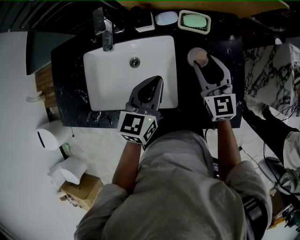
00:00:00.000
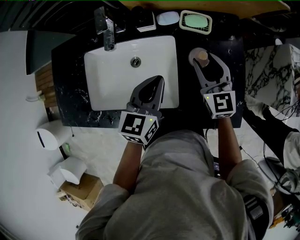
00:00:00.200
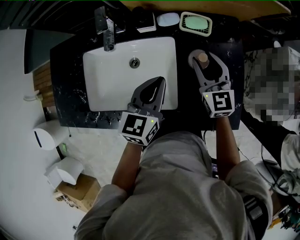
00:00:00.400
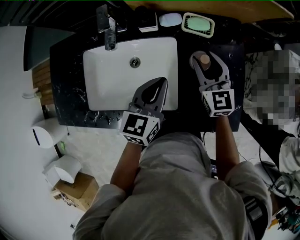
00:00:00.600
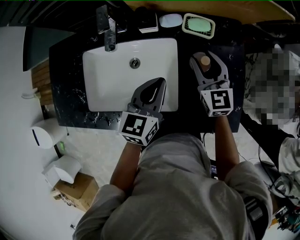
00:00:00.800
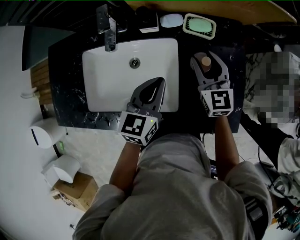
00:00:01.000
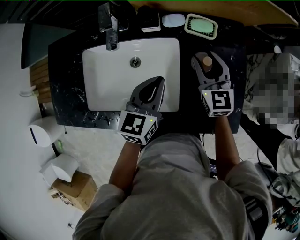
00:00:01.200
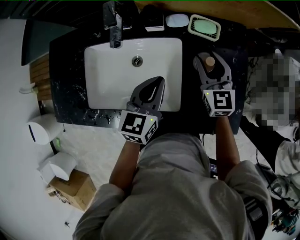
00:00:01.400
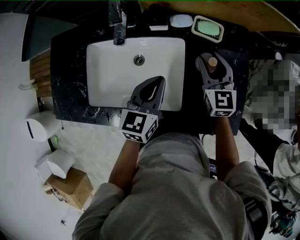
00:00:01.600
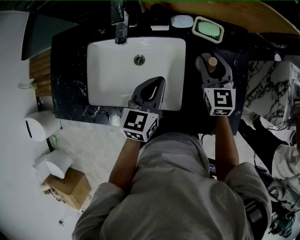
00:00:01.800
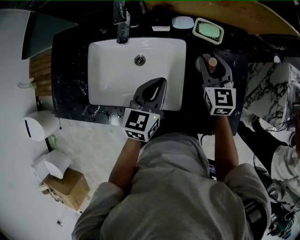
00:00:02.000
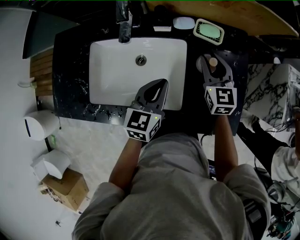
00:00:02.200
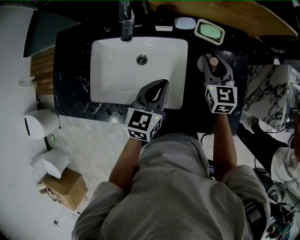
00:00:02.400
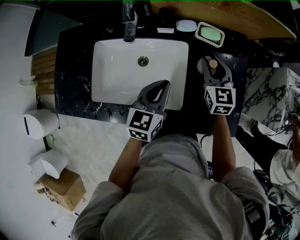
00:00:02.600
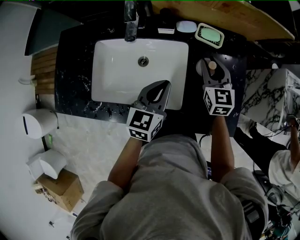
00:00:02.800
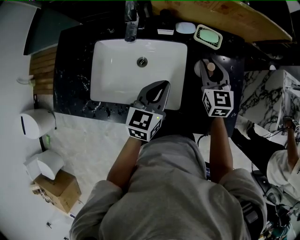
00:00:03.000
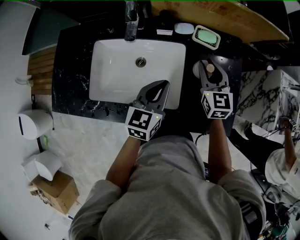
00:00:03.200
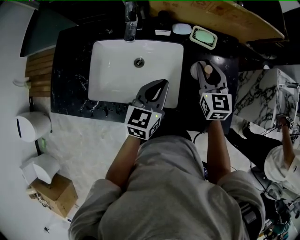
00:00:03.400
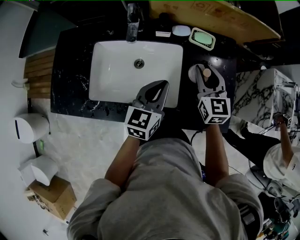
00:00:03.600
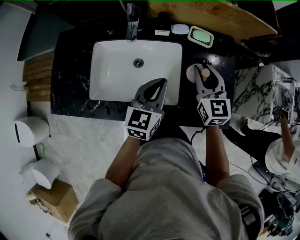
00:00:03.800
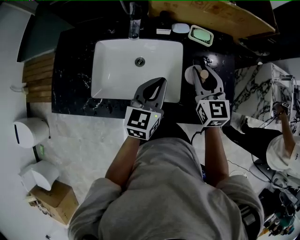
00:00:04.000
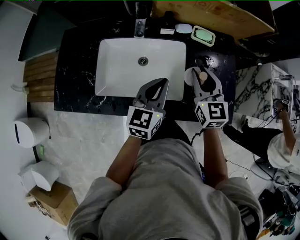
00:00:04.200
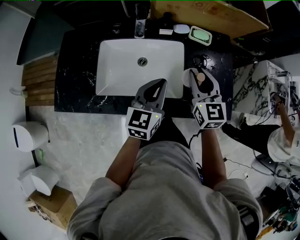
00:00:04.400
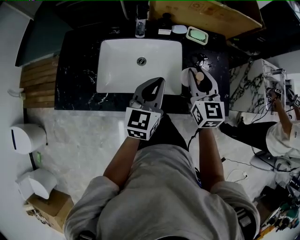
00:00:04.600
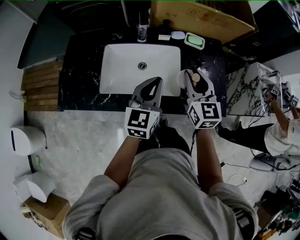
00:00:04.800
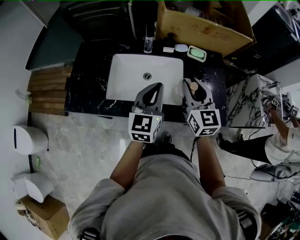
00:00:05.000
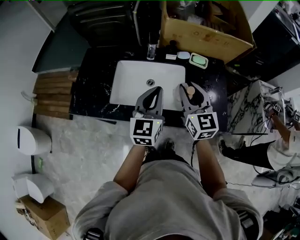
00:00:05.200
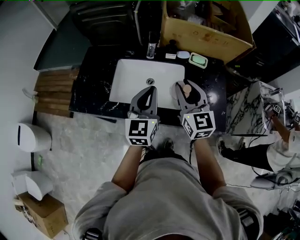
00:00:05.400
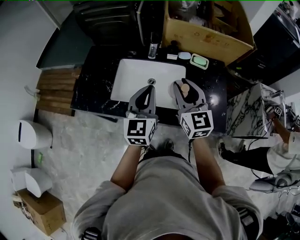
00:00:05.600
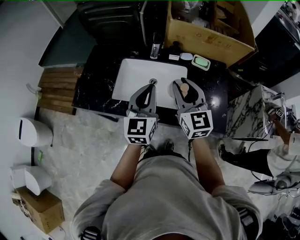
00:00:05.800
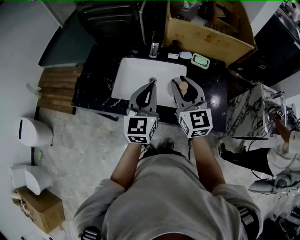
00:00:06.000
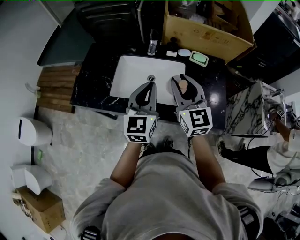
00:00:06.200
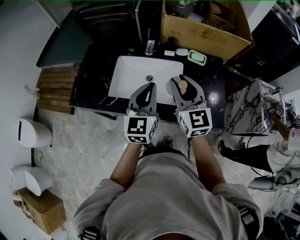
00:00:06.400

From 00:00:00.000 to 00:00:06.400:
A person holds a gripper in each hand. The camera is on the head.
From 00:00:00.000 to 00:00:03.200: The grippers make only small movements.
From 00:00:03.200 to 00:00:04.800: The left gripper shifts roughly 15 cm upward, backward and to the left; the right gripper is displaced backward, upward and to the left by roughly 20 cm.
From 00:00:04.800 to 00:00:06.400: The two grippers go approximately 5 cm upward.

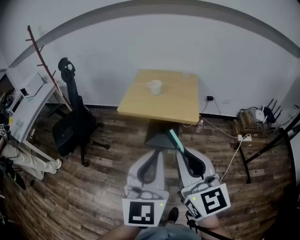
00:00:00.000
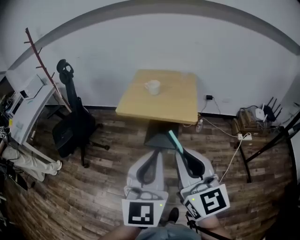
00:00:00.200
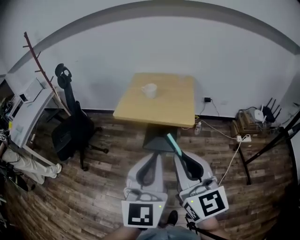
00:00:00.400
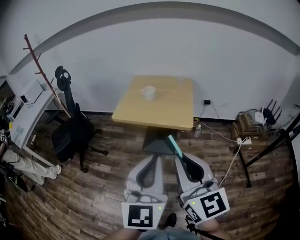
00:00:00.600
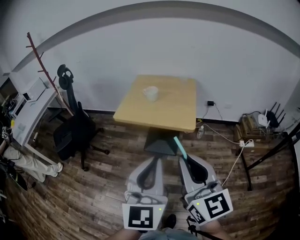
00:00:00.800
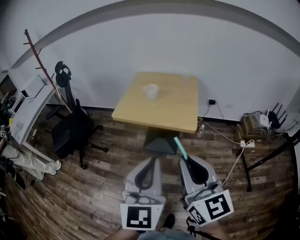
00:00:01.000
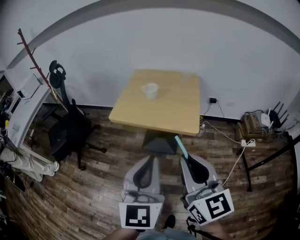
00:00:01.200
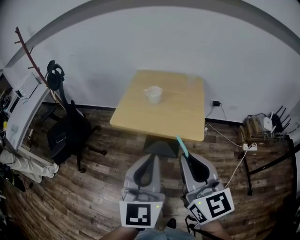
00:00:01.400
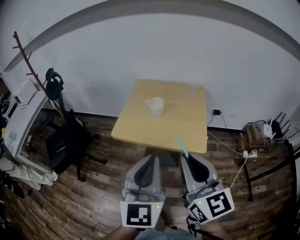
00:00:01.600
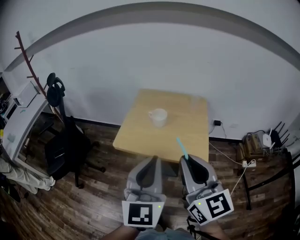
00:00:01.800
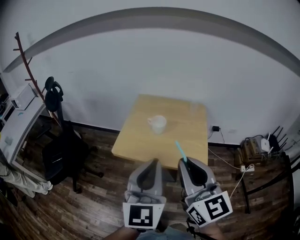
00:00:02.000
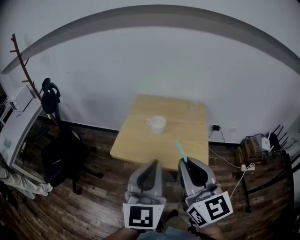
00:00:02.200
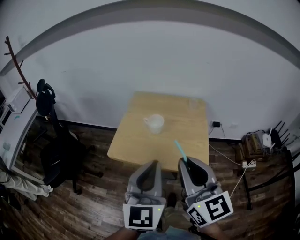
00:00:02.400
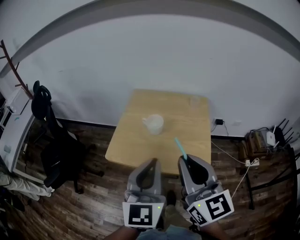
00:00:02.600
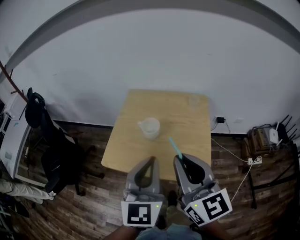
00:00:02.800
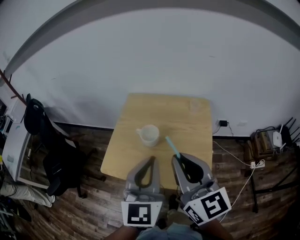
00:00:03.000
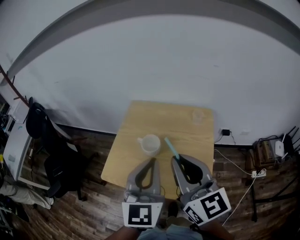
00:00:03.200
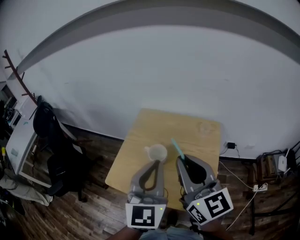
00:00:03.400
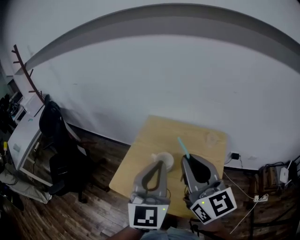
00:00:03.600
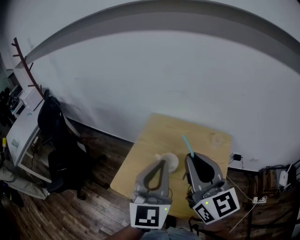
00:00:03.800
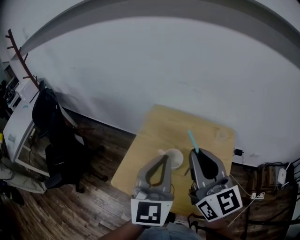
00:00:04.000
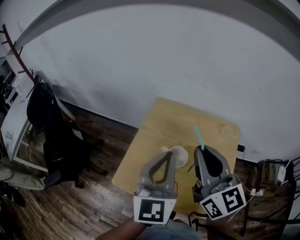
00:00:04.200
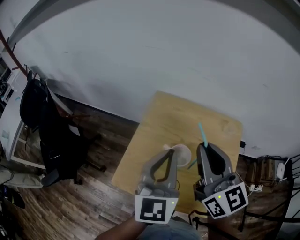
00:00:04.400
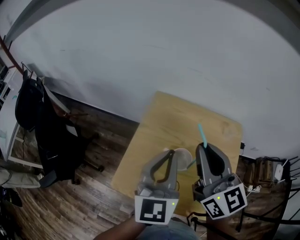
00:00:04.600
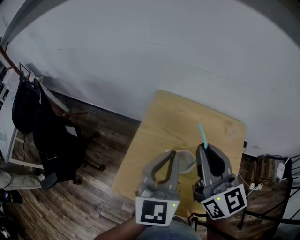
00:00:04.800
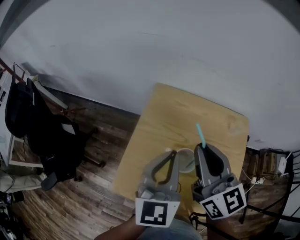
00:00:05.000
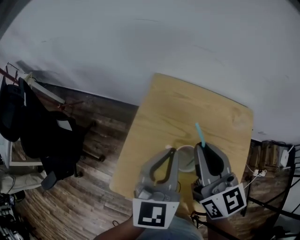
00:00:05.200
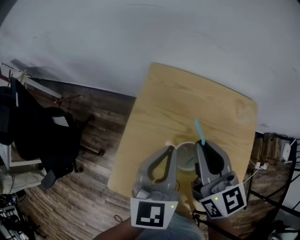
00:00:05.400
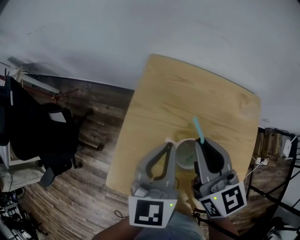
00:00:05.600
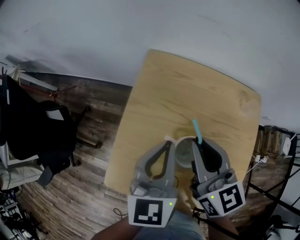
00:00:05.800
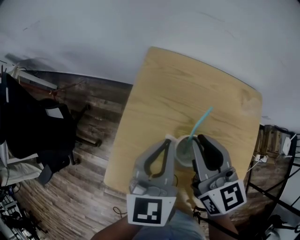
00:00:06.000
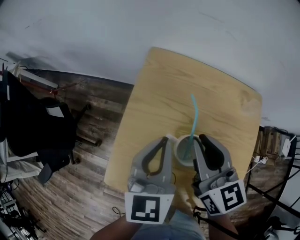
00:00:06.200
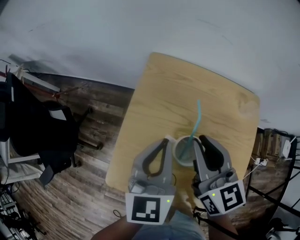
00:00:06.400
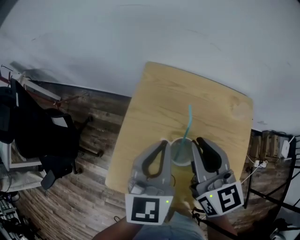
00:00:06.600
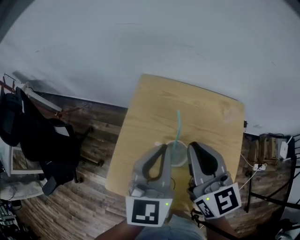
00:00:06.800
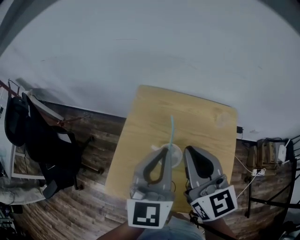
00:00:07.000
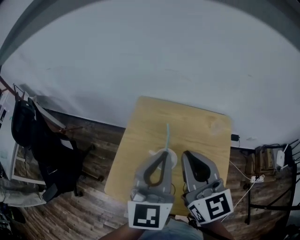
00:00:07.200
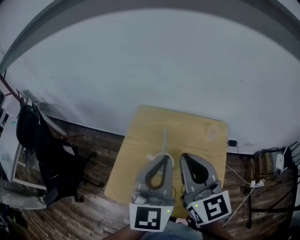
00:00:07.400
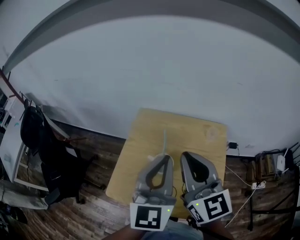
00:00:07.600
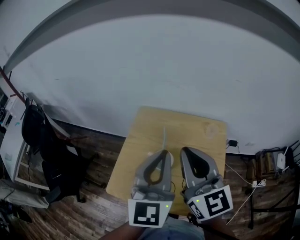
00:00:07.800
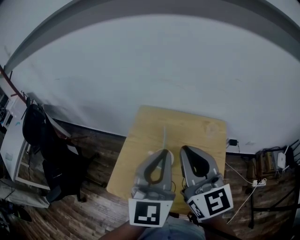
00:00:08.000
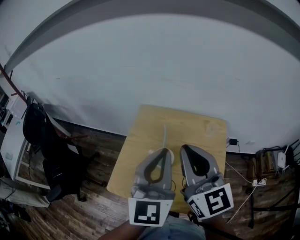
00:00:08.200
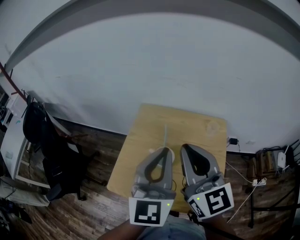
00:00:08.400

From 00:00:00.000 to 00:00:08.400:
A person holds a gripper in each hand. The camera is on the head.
From 00:00:00.000 to 00:00:01.400: The two grippers go about 15 cm forward.
From 00:00:01.400 to 00:00:02.800: The grippers both shift forward by about 25 cm.
From 00:00:02.800 to 00:00:04.200: The grippers both shift forward by some 20 cm.
From 00:00:04.200 to 00:00:05.600: The two grippers go about 20 cm downward and forward.
From 00:00:05.600 to 00:00:07.000: The right gripper goes approximately 10 cm upward and backward, while the left gripper moves upward, approximately 10 cm.
From 00:00:07.000 to 00:00:08.400: The two grippers go approximately 10 cm upward and backward.

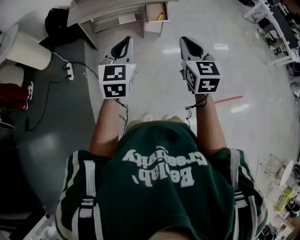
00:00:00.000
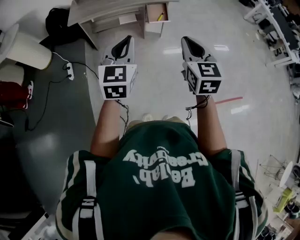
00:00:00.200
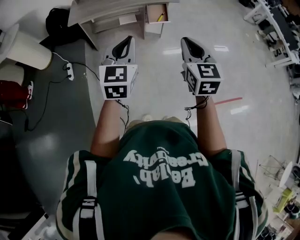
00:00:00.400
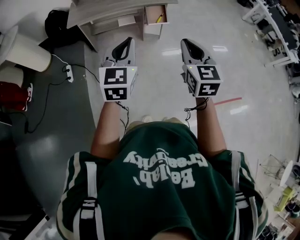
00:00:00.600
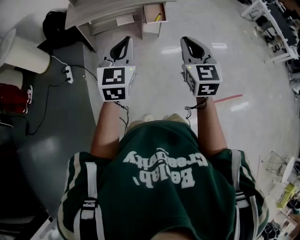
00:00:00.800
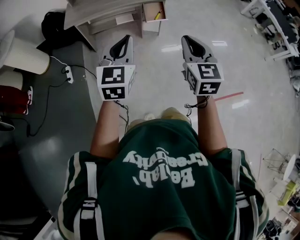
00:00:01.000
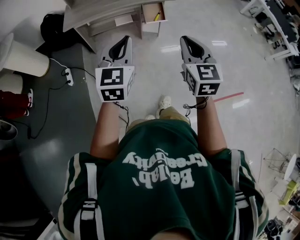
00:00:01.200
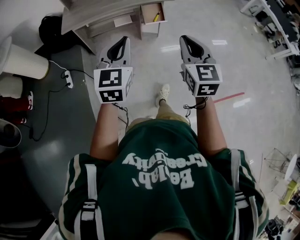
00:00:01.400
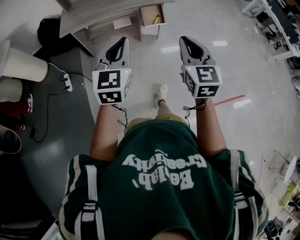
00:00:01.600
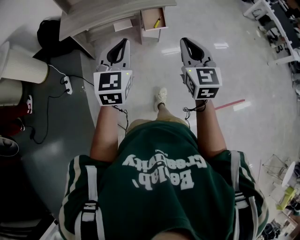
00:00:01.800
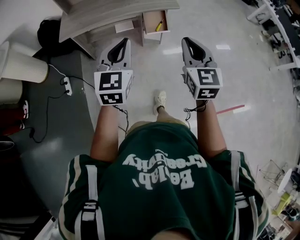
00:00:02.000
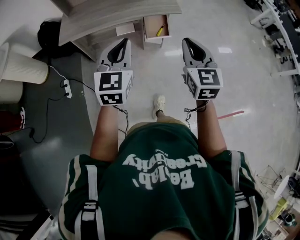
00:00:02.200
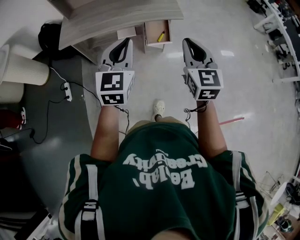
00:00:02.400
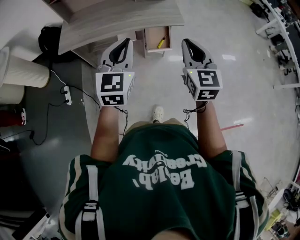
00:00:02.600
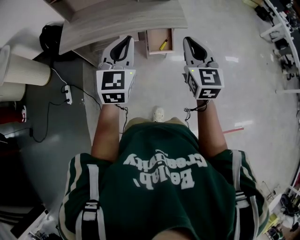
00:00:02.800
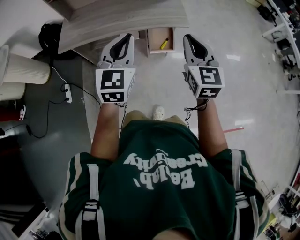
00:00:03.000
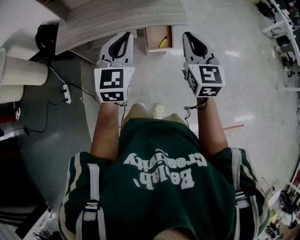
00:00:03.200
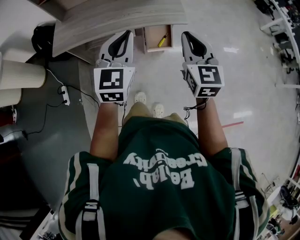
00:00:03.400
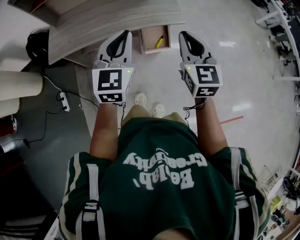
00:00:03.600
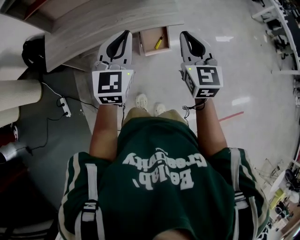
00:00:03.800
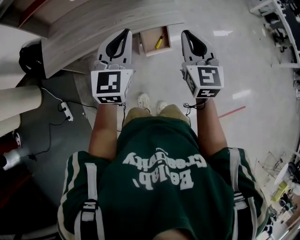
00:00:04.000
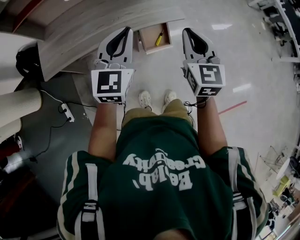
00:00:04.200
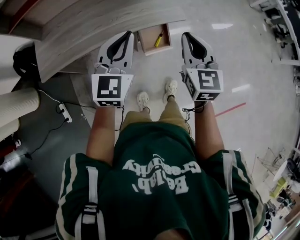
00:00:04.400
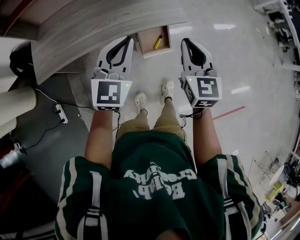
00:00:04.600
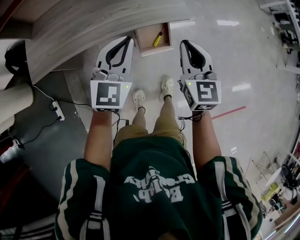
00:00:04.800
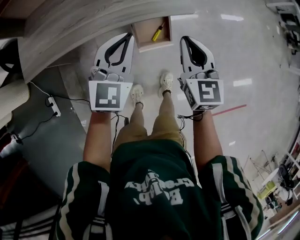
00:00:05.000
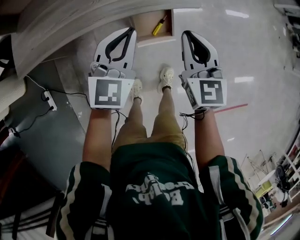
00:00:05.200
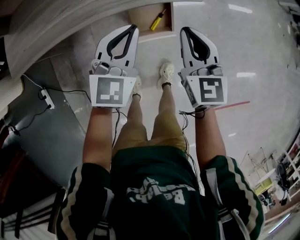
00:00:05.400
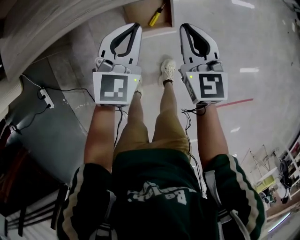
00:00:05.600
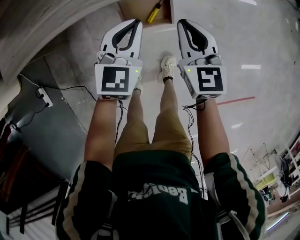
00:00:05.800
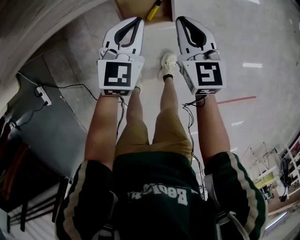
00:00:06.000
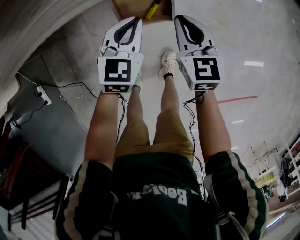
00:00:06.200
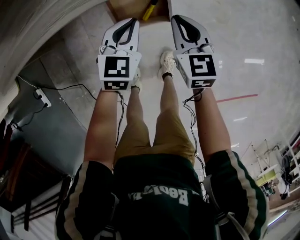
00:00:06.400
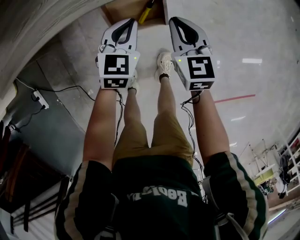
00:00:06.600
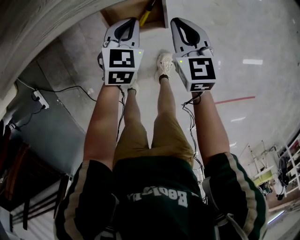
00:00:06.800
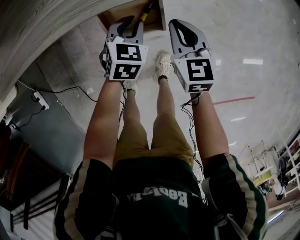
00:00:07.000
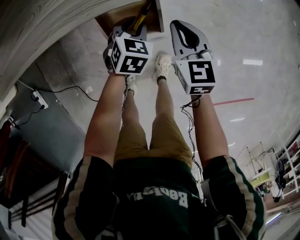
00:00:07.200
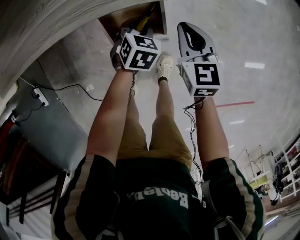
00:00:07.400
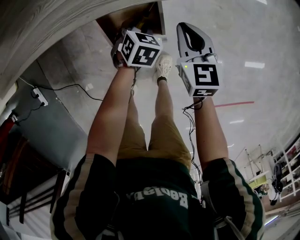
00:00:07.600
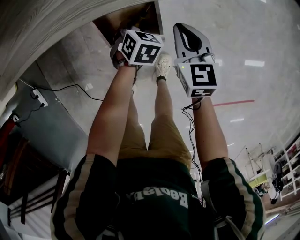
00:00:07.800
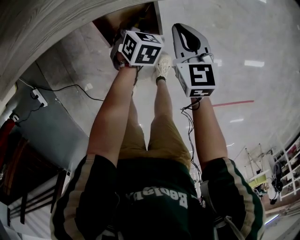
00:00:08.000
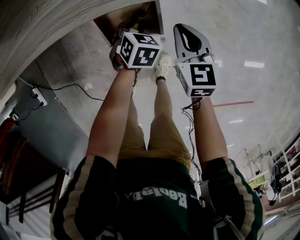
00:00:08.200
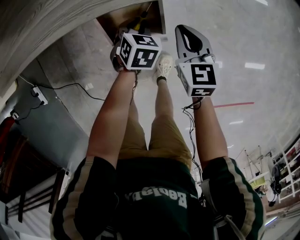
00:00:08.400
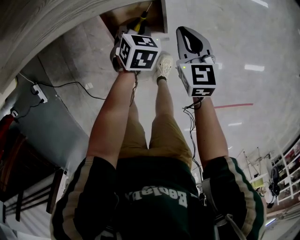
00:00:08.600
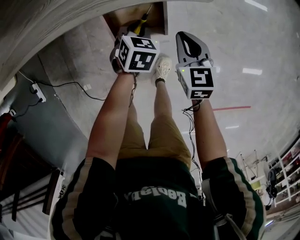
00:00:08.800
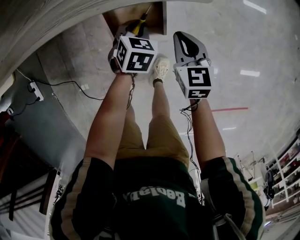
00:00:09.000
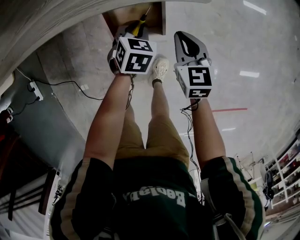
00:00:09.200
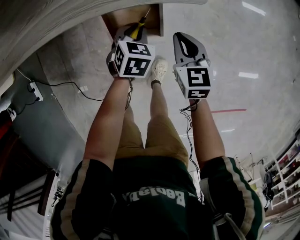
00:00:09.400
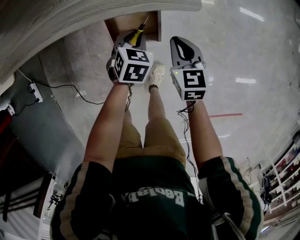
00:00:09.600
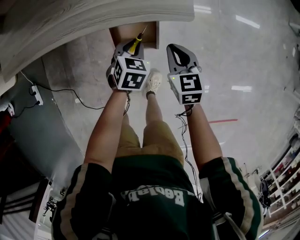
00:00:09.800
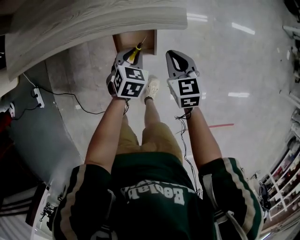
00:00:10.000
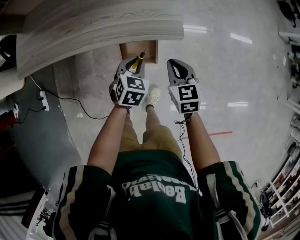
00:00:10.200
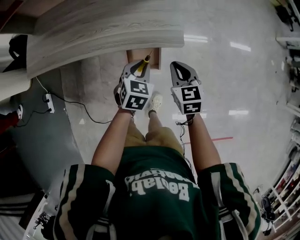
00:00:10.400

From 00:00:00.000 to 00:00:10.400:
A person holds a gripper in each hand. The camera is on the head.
From 00:00:00.000 to 00:00:01.400: Both grippers move forward, some 5 cm.
From 00:00:01.400 to 00:00:03.000: Both grippers are carried forward, approximately 40 cm.
From 00:00:03.000 to 00:00:04.400: The right gripper shifts some 20 cm forward and downward. Meanwhile the left gripper shifts some 20 cm forward.
From 00:00:04.400 to 00:00:06.000: The two grippers go roughly 40 cm downward. The left gripper changes its angle by about 20 degrees.
From 00:00:06.000 to 00:00:07.400: The right gripper goes some 15 cm downward, forward and to the right; the left gripper heads downward and forward, covering approximately 20 cm, points its fingers some 30 degrees further downward, and opens up.
From 00:00:07.400 to 00:00:09.000: The grippers stay close to where they were, moving slightly.
From 00:00:09.000 to 00:00:10.400: Both grippers travel together upward, about 30 cm.
